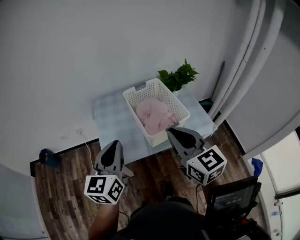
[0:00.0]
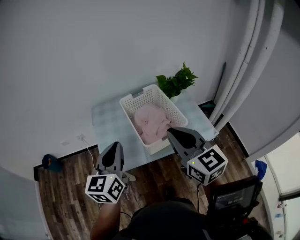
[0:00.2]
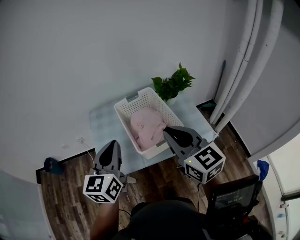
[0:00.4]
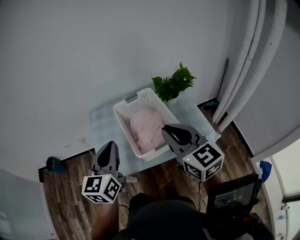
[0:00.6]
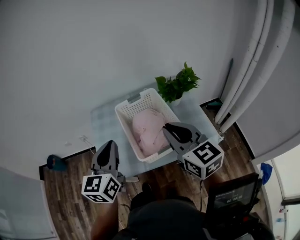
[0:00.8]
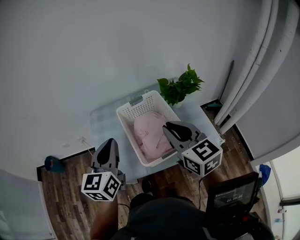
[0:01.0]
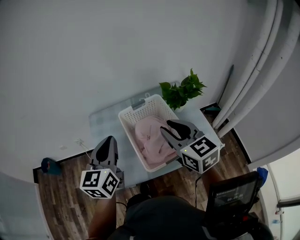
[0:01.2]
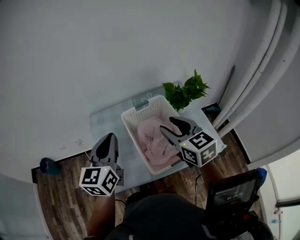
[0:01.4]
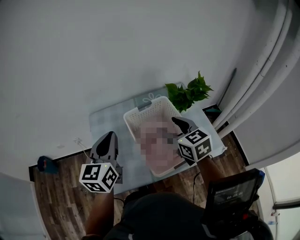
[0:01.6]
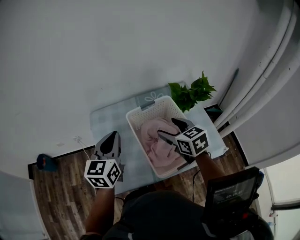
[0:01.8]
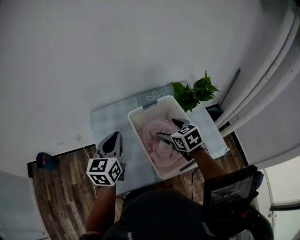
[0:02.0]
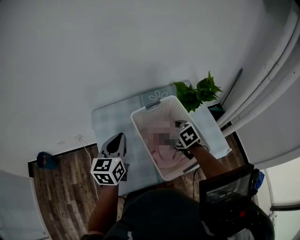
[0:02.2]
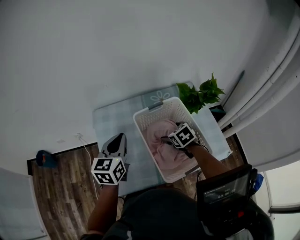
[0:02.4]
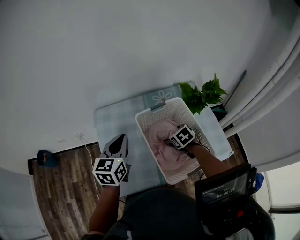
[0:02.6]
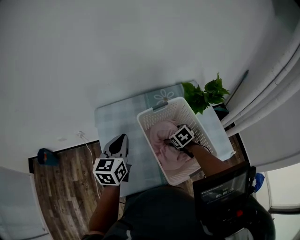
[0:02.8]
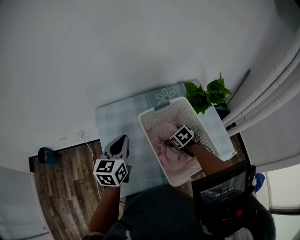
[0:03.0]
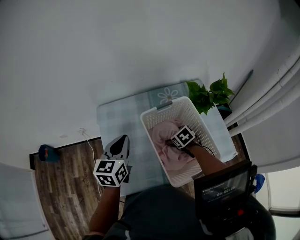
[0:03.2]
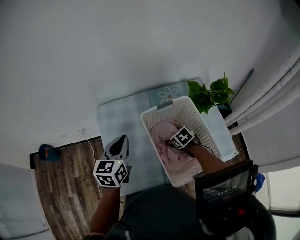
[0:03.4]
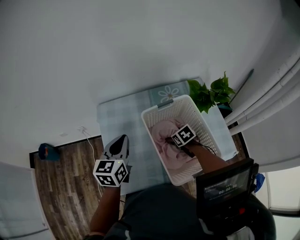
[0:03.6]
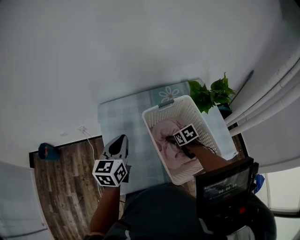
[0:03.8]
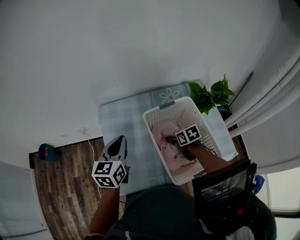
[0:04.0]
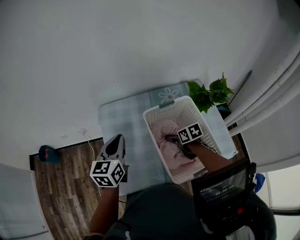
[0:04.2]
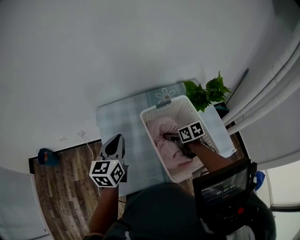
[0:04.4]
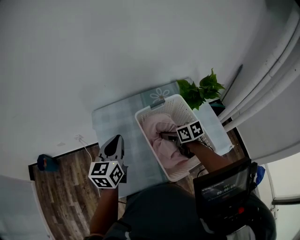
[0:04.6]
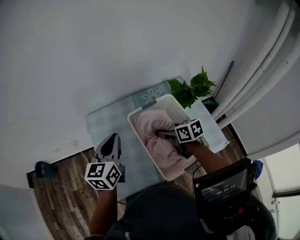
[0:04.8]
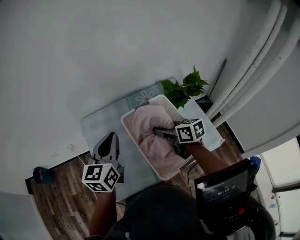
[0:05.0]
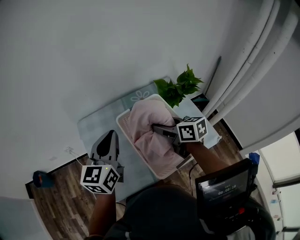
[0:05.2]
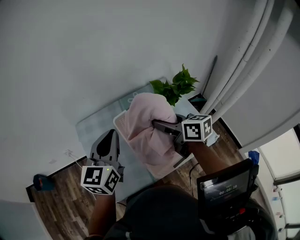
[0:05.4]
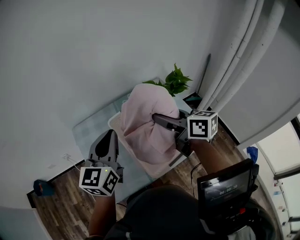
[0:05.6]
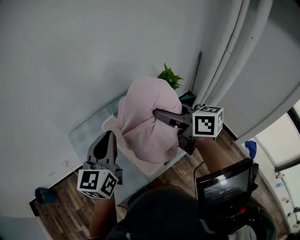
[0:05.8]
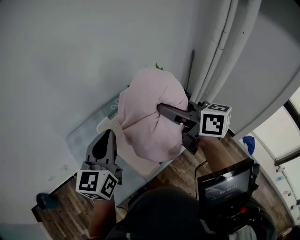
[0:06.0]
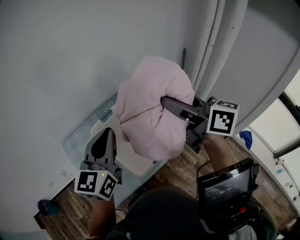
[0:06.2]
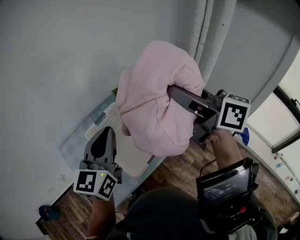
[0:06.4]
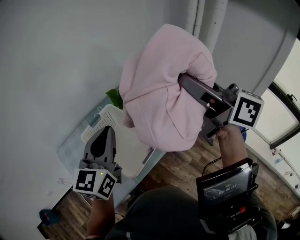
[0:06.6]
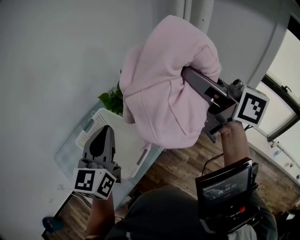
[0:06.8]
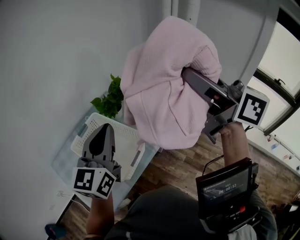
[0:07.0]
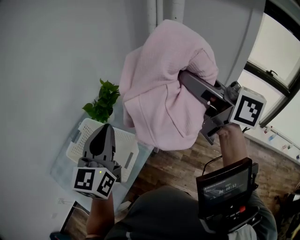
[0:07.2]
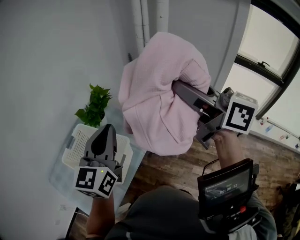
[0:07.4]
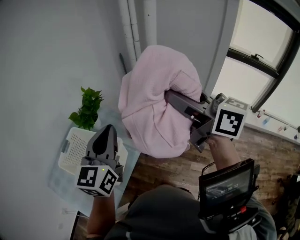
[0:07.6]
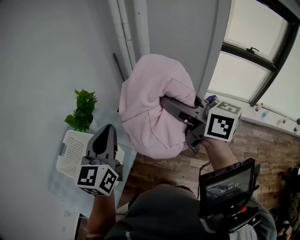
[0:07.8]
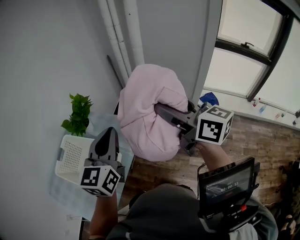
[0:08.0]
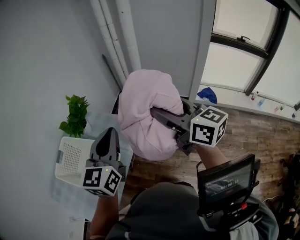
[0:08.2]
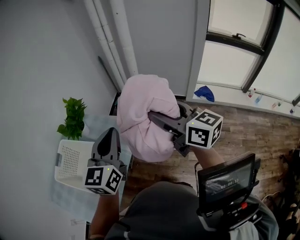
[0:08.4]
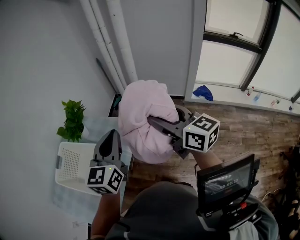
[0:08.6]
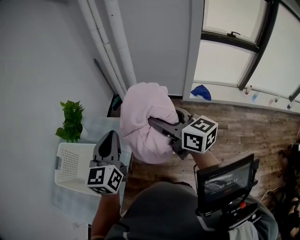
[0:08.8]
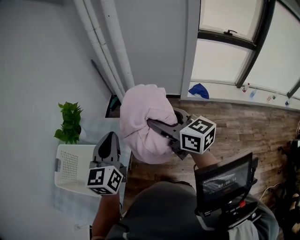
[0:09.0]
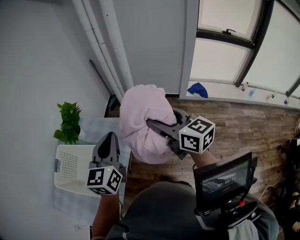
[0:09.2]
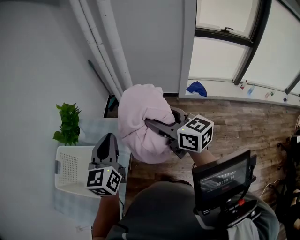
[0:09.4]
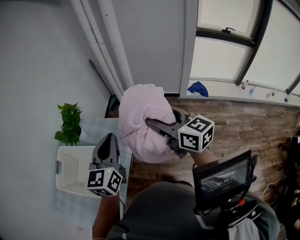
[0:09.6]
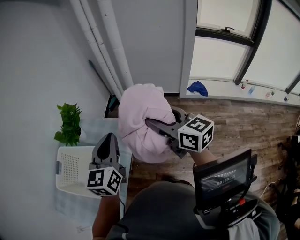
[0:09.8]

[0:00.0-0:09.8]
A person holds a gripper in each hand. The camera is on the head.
0:00.0 to 0:01.4: The grippers both shift forward by approximately 20 cm. The right gripper opens up.
0:01.4 to 0:02.8: The left gripper moves downward and forward, some 15 cm. The right gripper is displaced downward by some 30 cm, points its fingers some 40 degrees further downward, and opens.
0:02.8 to 0:04.2: The right gripper turns by some 30 degrees, and closes.
0:04.2 to 0:05.6: The left gripper is displaced to the right and upward by roughly 15 cm, and changes its angle by about 20 degrees. The right gripper moves upward, about 30 cm, and tilts its fingers some 40 degrees upward.
0:05.6 to 0:07.0: The left gripper moves about 20 cm, and changes its angle by about 30 degrees. Meanwhile the right gripper changes place by some 35 cm, and swivels about 40 degrees.
0:07.0 to 0:08.4: The right gripper shifts approximately 25 cm downward, to the right and backward, and rotates roughly 20 degrees; the left gripper travels to the right by some 20 cm.
0:08.4 to 0:09.8: The grippers stay close to where they were, moving slightly.

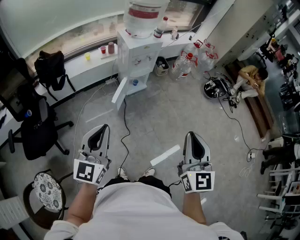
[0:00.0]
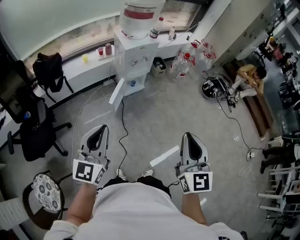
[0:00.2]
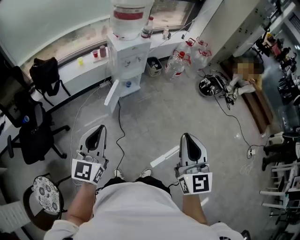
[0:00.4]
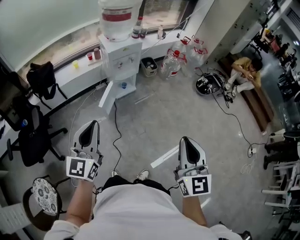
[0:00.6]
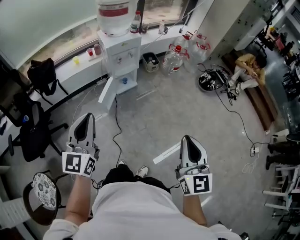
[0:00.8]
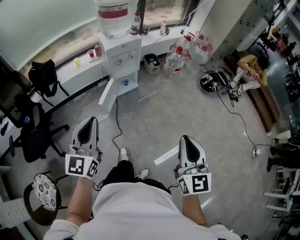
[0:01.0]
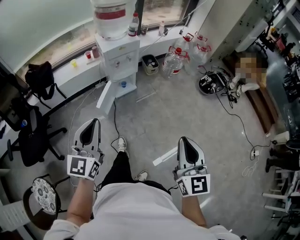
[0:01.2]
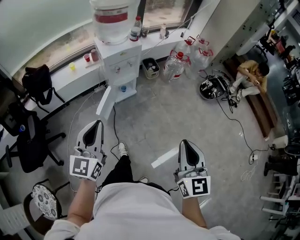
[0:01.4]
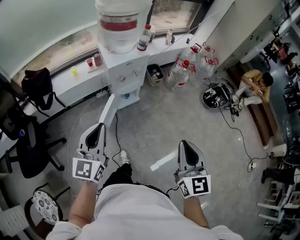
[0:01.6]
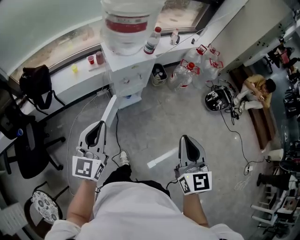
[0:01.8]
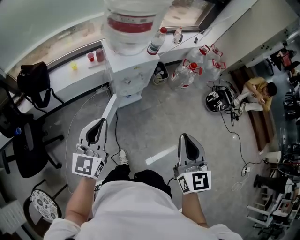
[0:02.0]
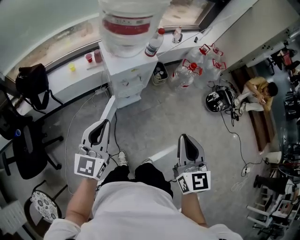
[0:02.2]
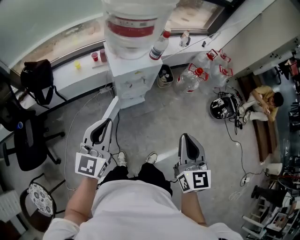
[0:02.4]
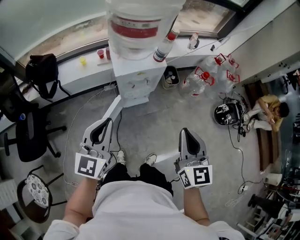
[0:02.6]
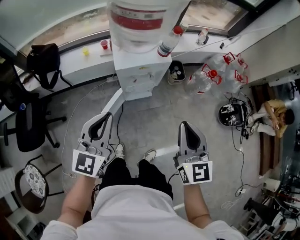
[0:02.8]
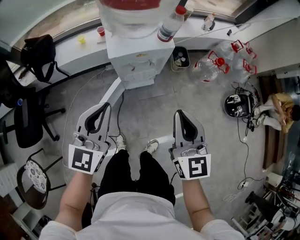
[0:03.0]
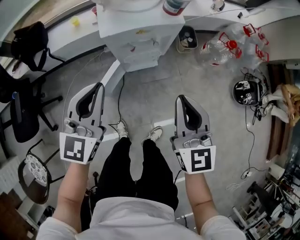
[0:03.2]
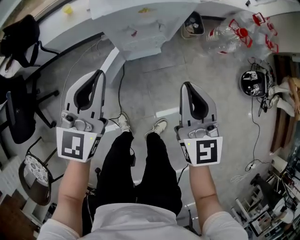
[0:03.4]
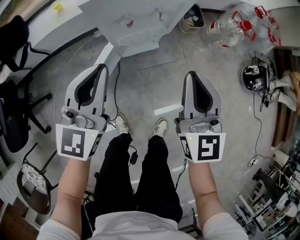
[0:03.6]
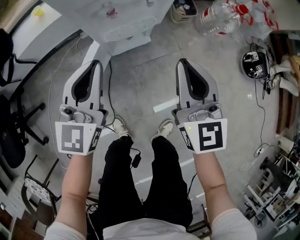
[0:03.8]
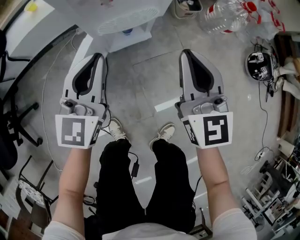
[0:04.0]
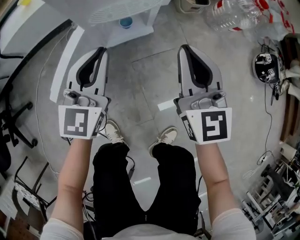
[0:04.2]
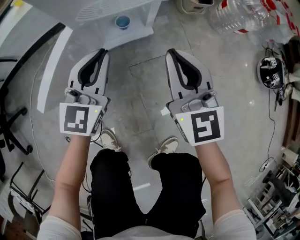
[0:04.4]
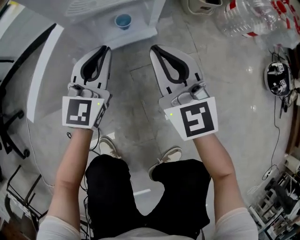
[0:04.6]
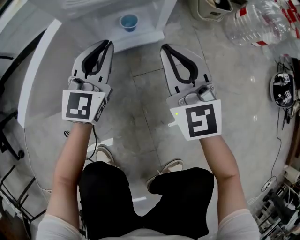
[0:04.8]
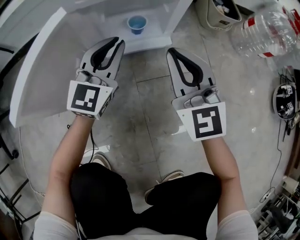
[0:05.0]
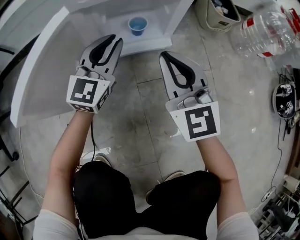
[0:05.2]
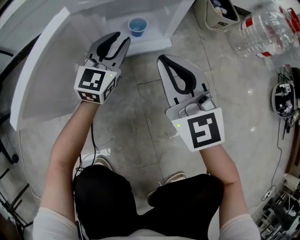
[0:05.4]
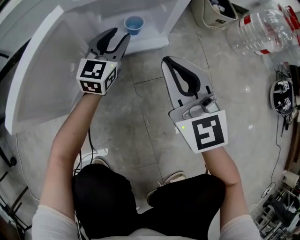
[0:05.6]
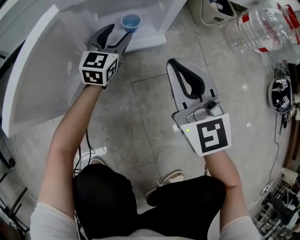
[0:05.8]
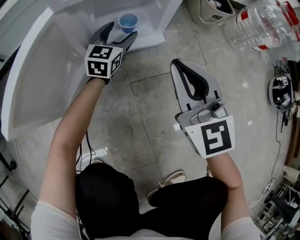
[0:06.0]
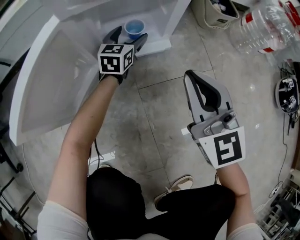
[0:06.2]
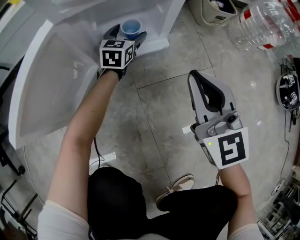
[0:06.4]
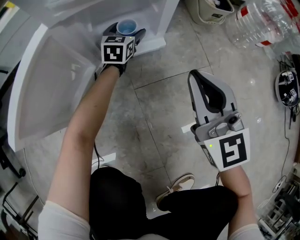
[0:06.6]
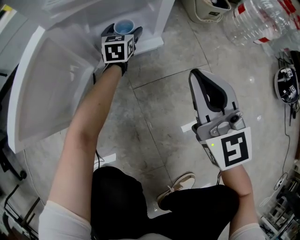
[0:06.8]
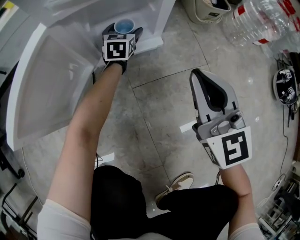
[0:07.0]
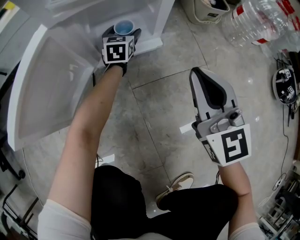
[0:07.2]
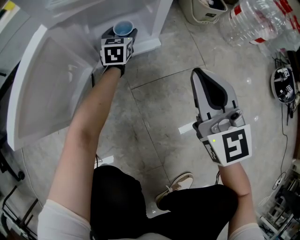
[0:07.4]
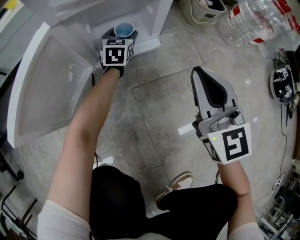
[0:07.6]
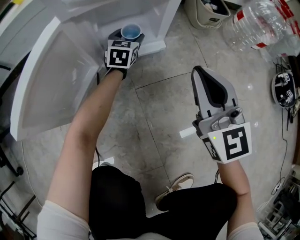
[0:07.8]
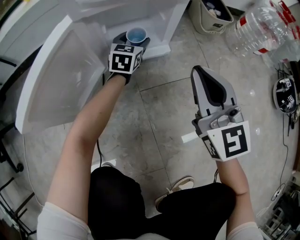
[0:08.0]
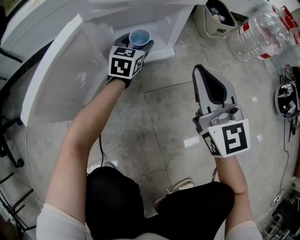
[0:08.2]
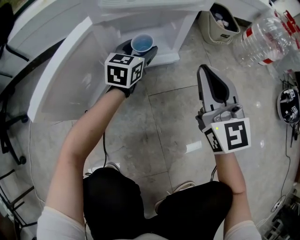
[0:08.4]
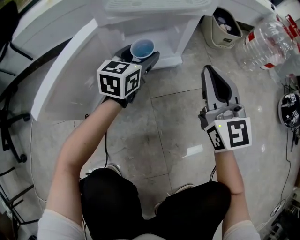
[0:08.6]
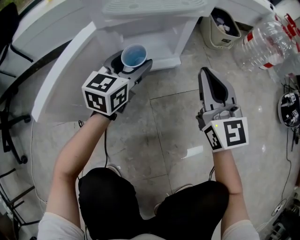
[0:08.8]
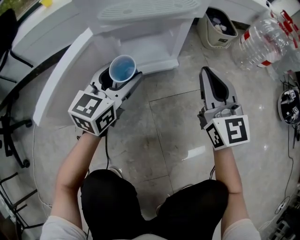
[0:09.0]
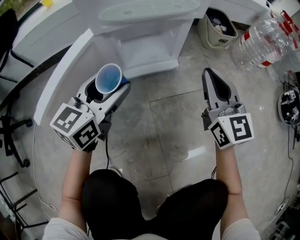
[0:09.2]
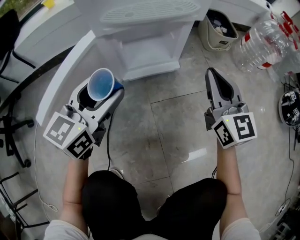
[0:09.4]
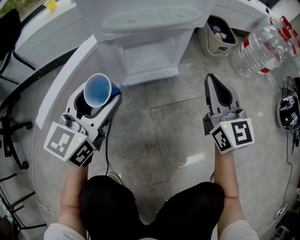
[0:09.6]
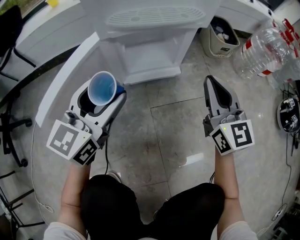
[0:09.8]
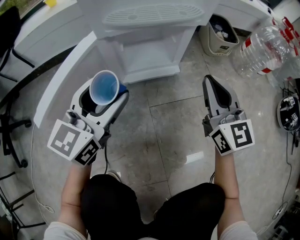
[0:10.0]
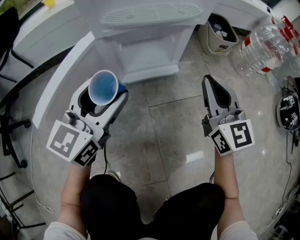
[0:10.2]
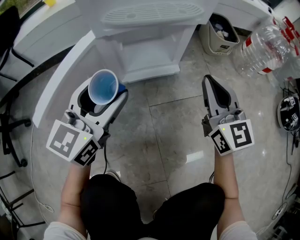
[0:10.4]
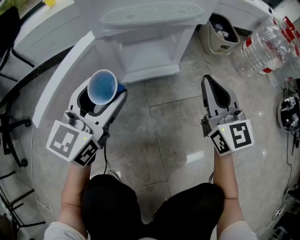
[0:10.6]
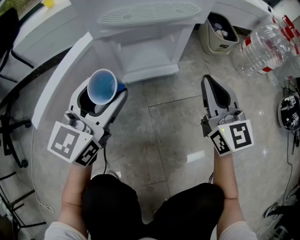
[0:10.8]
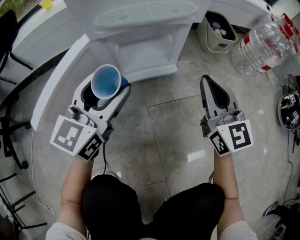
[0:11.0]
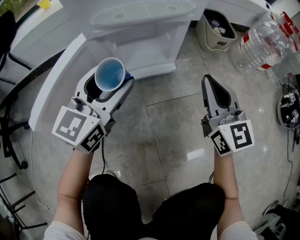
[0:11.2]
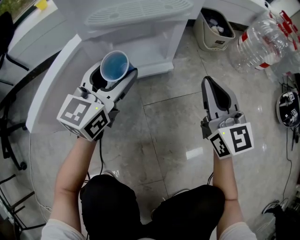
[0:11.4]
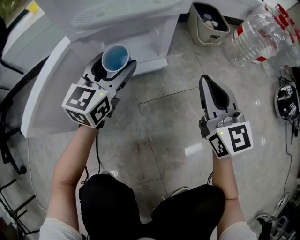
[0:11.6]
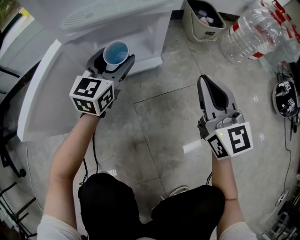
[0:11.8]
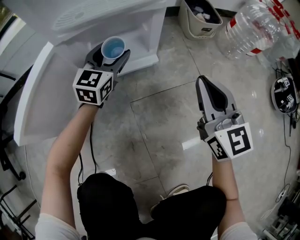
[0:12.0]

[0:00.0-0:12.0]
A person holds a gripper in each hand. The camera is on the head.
0:00.0 to 0:01.6: The left gripper moves forward, some 20 cm. The right gripper goes about 20 cm forward and to the right.
0:01.6 to 0:03.0: Both grippers move forward, roughly 25 cm.
0:03.0 to 0:04.4: The two grippers go roughly 50 cm downward.
0:04.4 to 0:06.0: The right gripper goes about 15 cm downward, while the left gripper travels downward and forward by about 30 cm, and opens up.
0:06.0 to 0:07.6: The right gripper travels to the right by roughly 5 cm, while the left gripper changes place by roughly 5 cm.
0:07.6 to 0:09.0: The left gripper travels backward and upward by some 25 cm.
0:09.0 to 0:10.4: The left gripper moves upward and backward, approximately 10 cm.
0:10.4 to 0:12.0: The right gripper goes some 5 cm to the right. Meanwhile the left gripper shifts approximately 20 cm forward, downward and to the right.

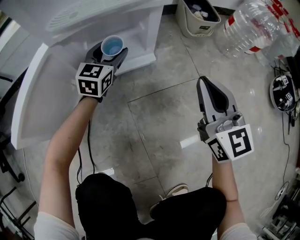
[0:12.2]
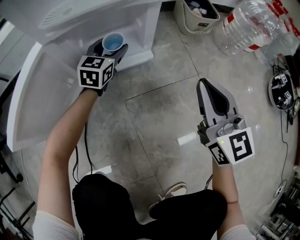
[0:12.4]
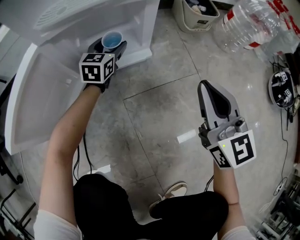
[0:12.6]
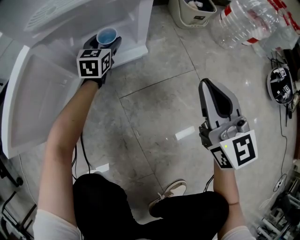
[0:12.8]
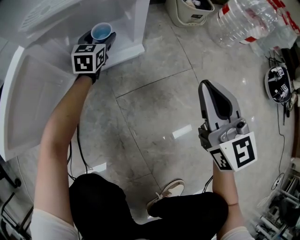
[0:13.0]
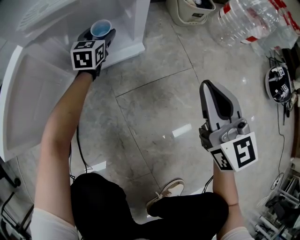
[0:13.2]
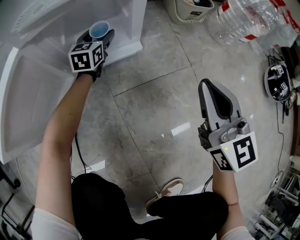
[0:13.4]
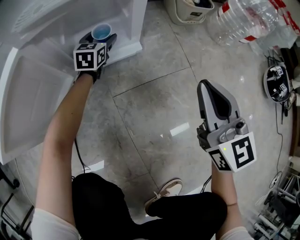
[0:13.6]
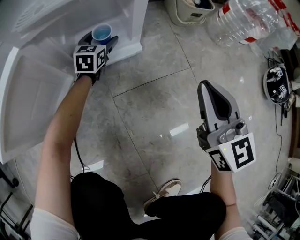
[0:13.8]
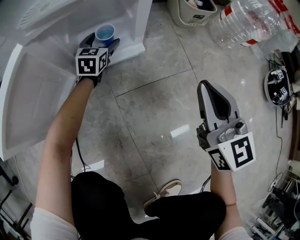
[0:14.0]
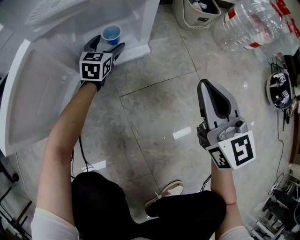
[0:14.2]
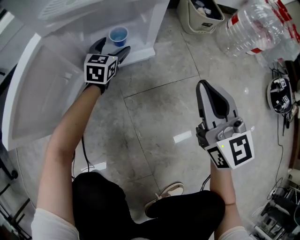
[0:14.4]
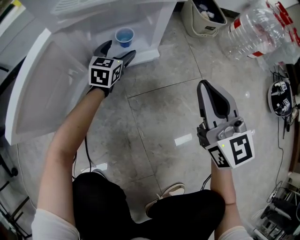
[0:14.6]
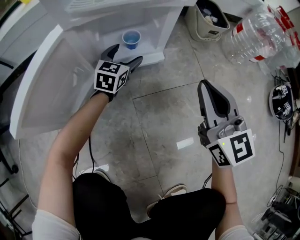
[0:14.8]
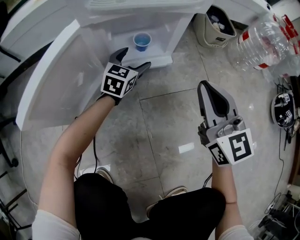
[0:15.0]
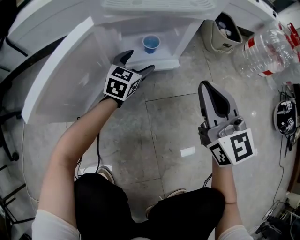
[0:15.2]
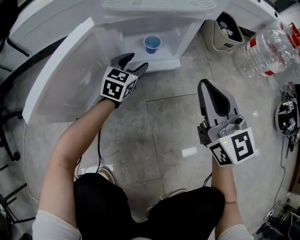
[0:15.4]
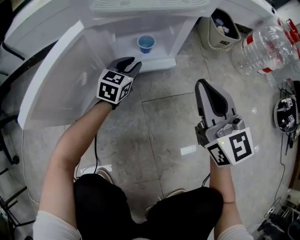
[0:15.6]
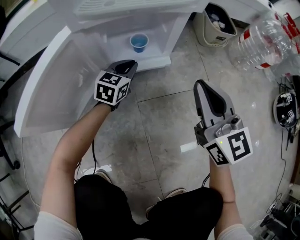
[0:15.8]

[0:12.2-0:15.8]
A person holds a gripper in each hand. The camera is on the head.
0:12.2 to 0:14.0: The left gripper shifts about 10 cm downward and forward.
0:14.0 to 0:15.8: The left gripper travels backward by roughly 10 cm, and closes its fingers. The right gripper travels to the left by approximately 10 cm.
